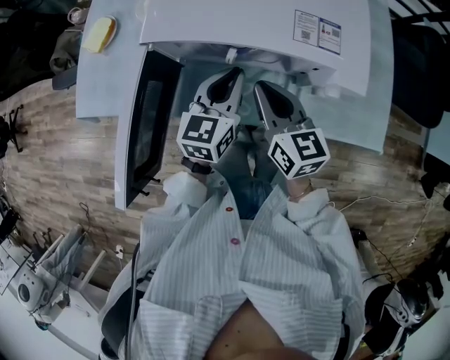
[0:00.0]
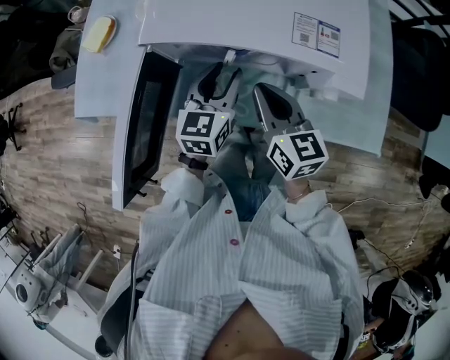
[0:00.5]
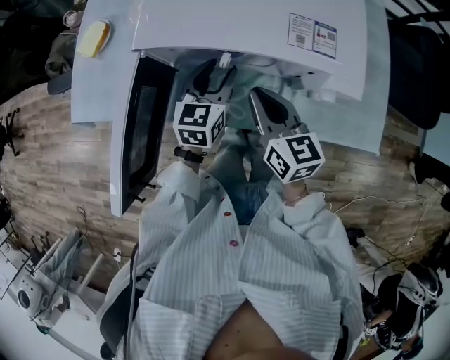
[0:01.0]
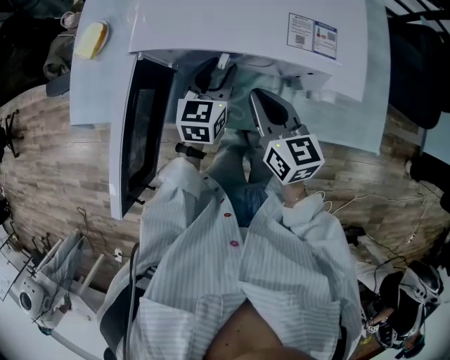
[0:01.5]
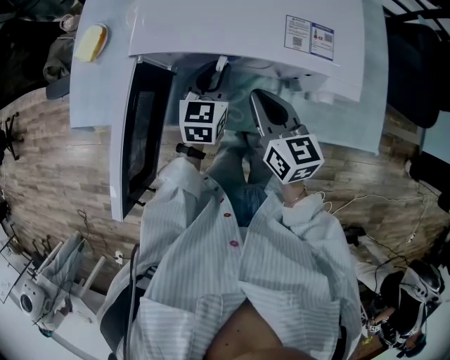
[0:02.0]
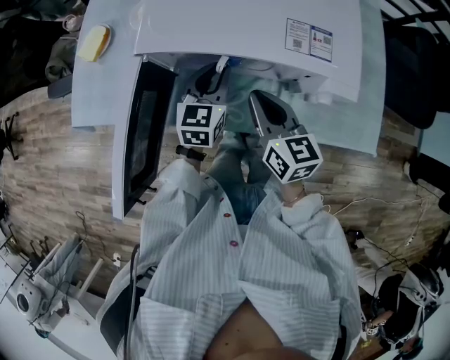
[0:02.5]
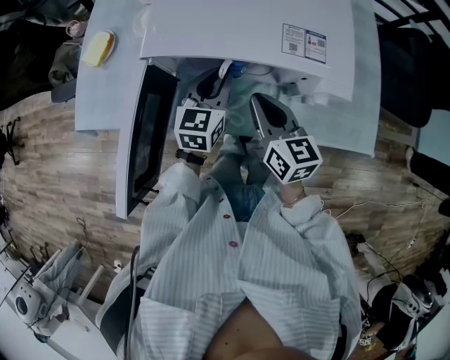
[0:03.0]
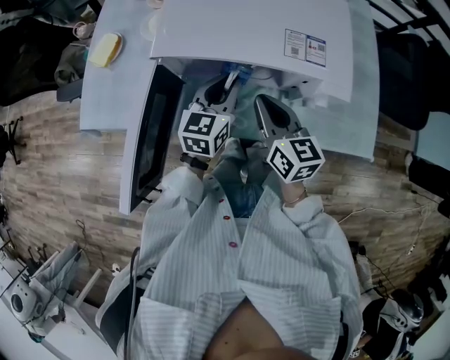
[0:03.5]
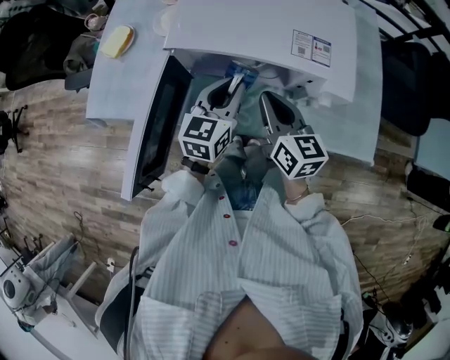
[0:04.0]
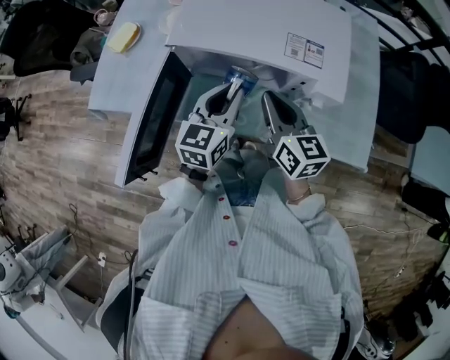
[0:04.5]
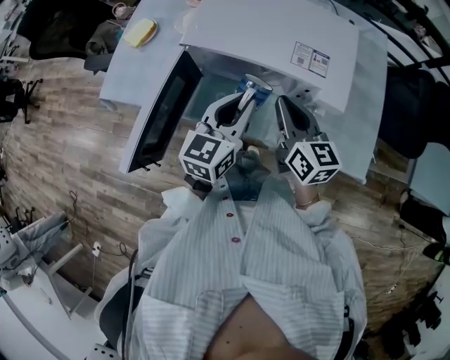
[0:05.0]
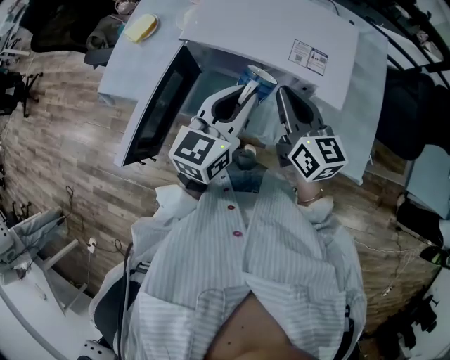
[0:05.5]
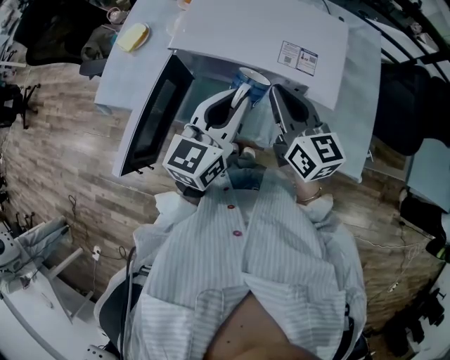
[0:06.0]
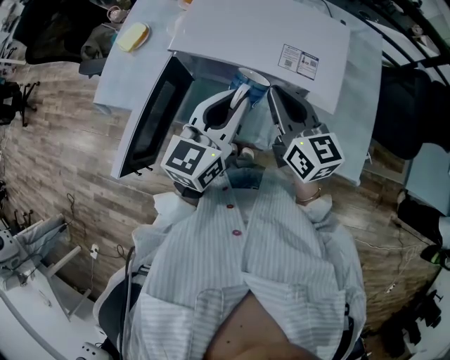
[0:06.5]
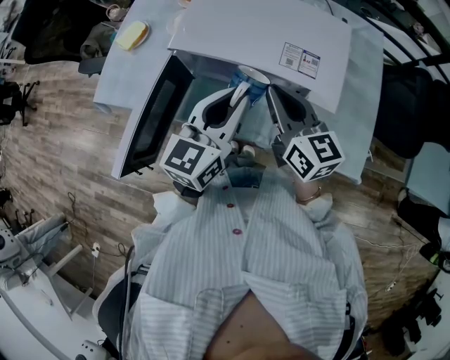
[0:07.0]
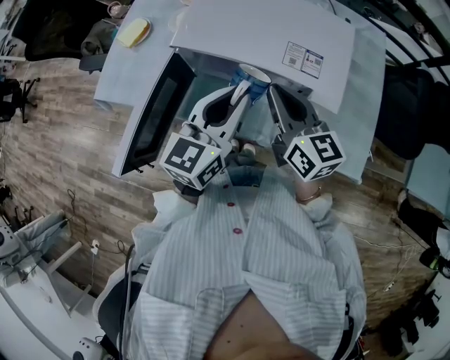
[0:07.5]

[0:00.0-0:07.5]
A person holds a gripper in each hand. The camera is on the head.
0:00.0 to 0:02.0: The left gripper heads downward, covering some 5 cm, and opens, then closes once more.
0:02.0 to 0:04.0: The left gripper shifts about 10 cm upward and backward.
0:04.0 to 0:05.5: The right gripper goes approximately 10 cm upward. The left gripper goes roughly 15 cm upward and backward.
0:05.5 to 0:07.5: The grippers move only a little.

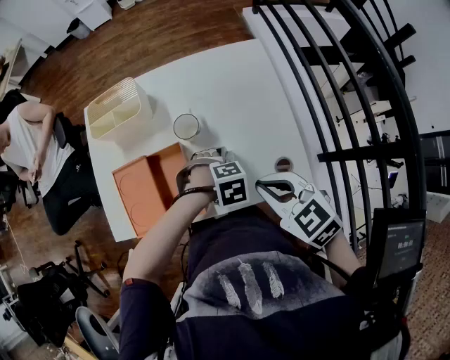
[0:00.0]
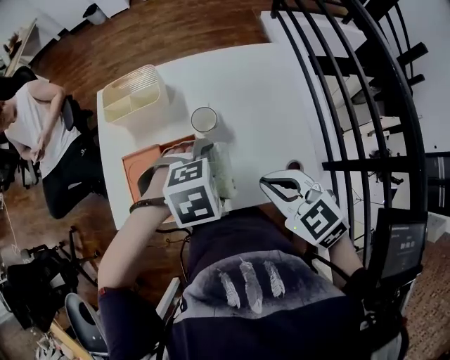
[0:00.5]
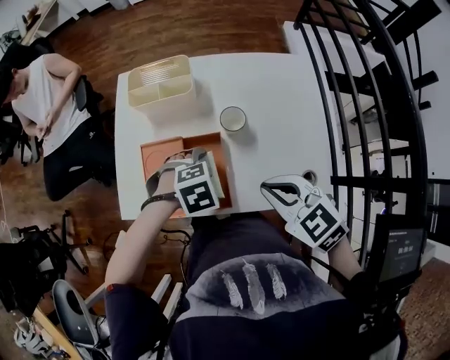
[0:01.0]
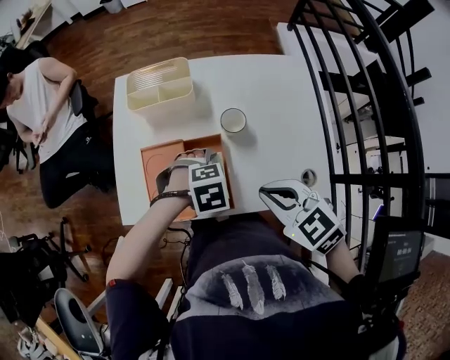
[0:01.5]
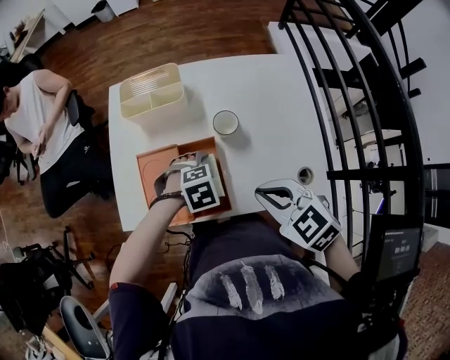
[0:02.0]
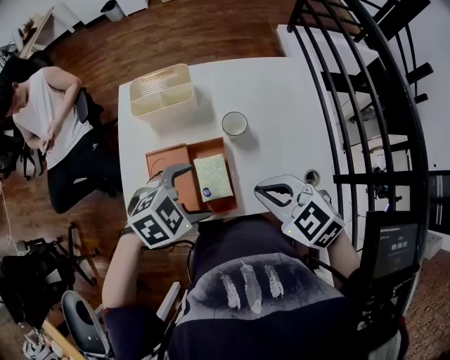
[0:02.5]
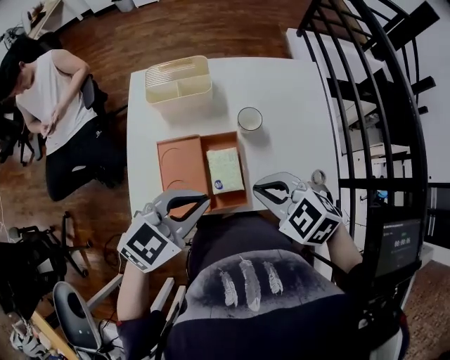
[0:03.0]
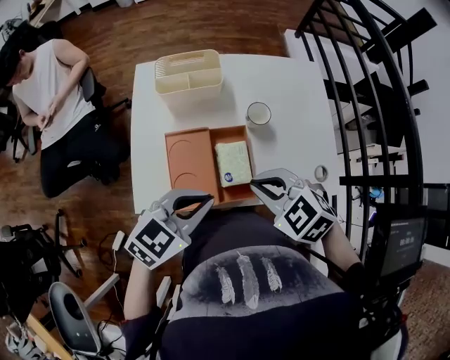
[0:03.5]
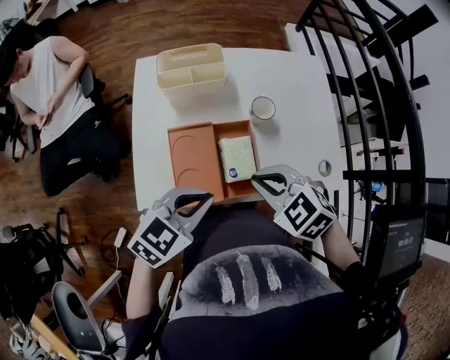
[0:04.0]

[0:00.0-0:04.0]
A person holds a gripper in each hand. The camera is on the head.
0:00.0 to 0:02.0: The left gripper travels upward and back again, some 15 cm each way. The right gripper shifts by approximately 10 cm.
0:02.0 to 0:04.0: The left gripper goes some 15 cm upward, tilts its fingers approximately 40 degrees upward, and closes up; the right gripper moves some 10 cm.

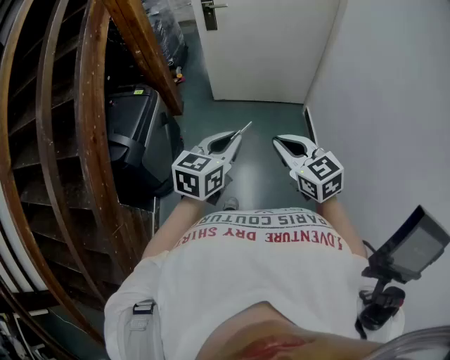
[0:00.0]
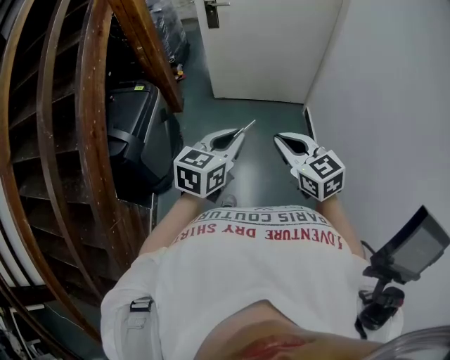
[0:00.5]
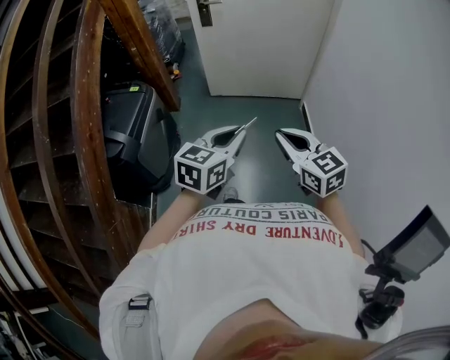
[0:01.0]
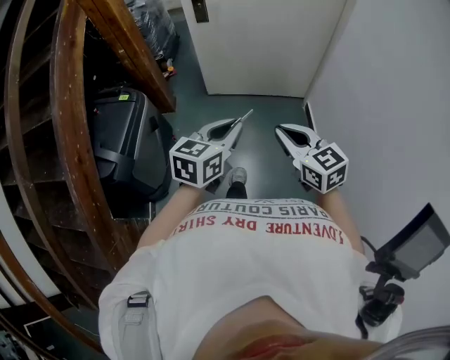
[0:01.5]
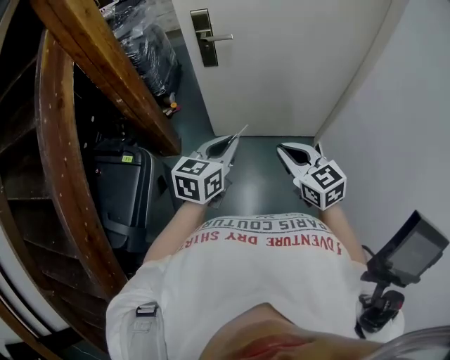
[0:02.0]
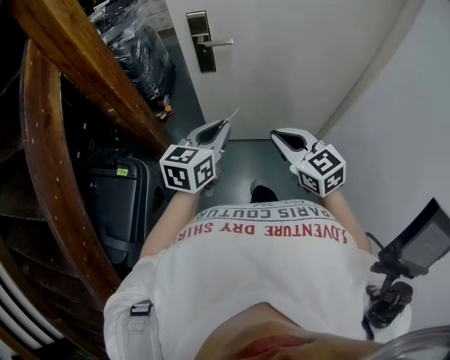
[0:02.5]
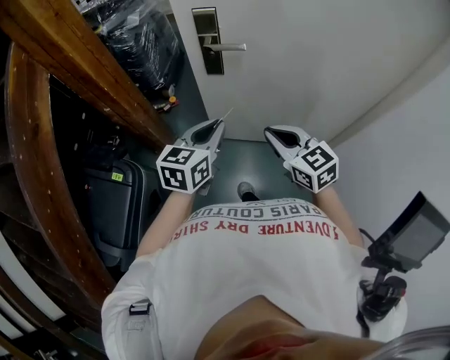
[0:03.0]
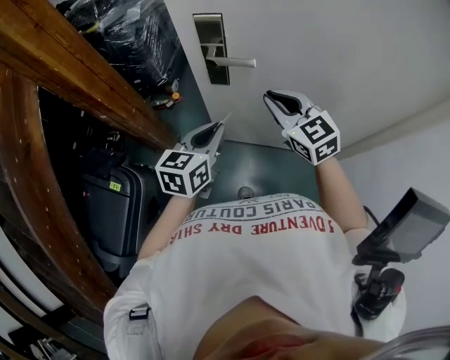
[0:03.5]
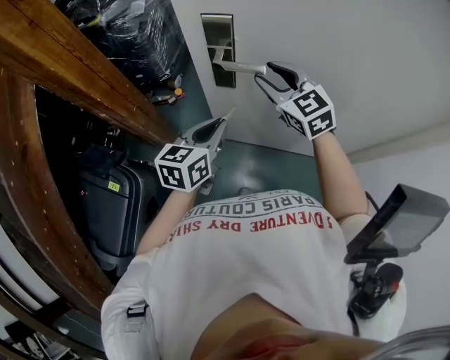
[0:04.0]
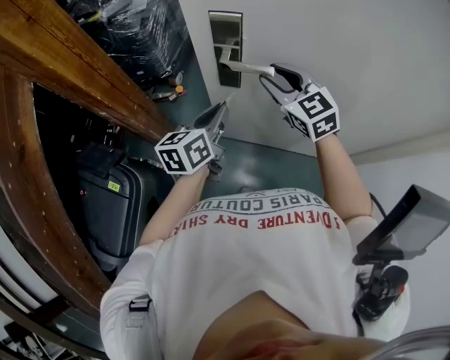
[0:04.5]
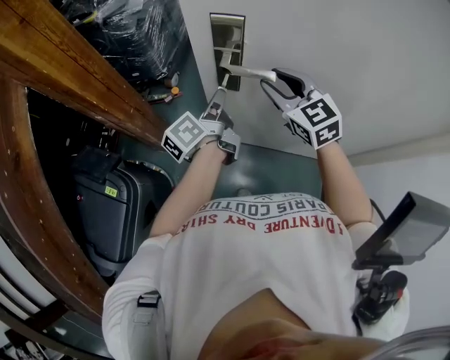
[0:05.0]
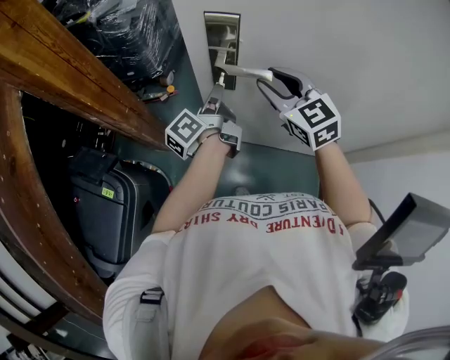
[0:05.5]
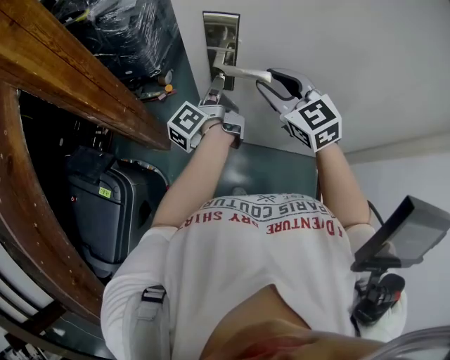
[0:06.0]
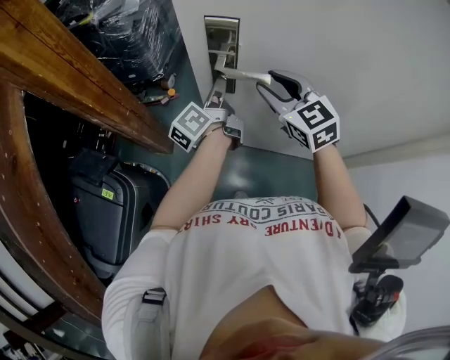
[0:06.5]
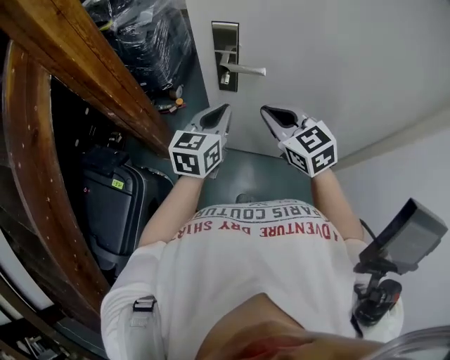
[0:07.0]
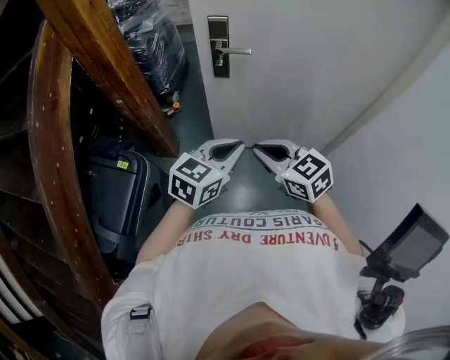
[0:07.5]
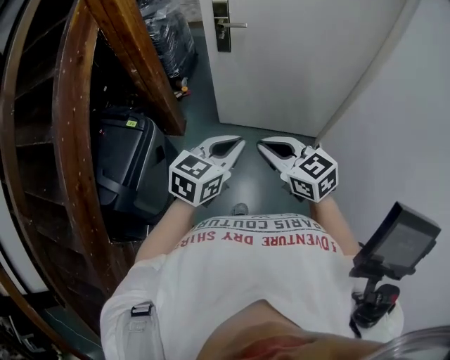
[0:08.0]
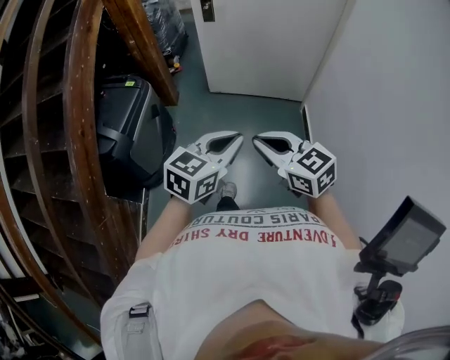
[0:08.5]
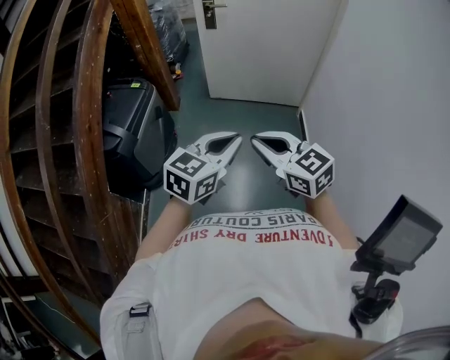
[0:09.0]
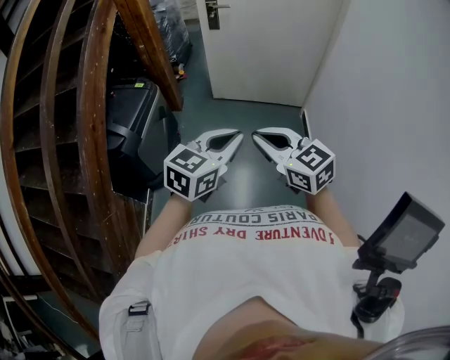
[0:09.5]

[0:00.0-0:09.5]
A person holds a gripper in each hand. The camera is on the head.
0:00.0 to 0:02.0: The two grippers travel together, forward, about 40 cm.
0:02.0 to 0:04.0: The grippers both shift forward by roughly 40 cm. The right gripper opens.
0:04.0 to 0:05.5: The left gripper shifts about 15 cm forward, and rotates around the line of its fingers by approximately 60 degrees, counterclockwise from behind.
0:05.5 to 0:07.5: The pair of grippers is taken backward, roughly 40 cm. The left gripper twists about 70 degrees clockwise, seen from behind, while the right gripper closes its fingers.
0:07.5 to 0:09.5: The two grippers travel together, backward, roughly 60 cm.

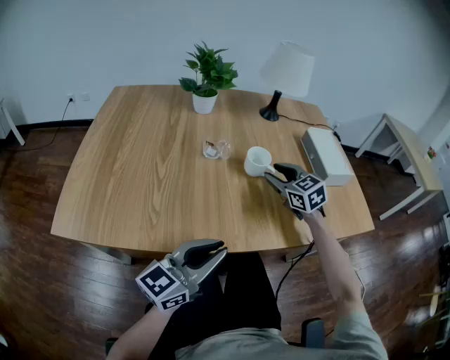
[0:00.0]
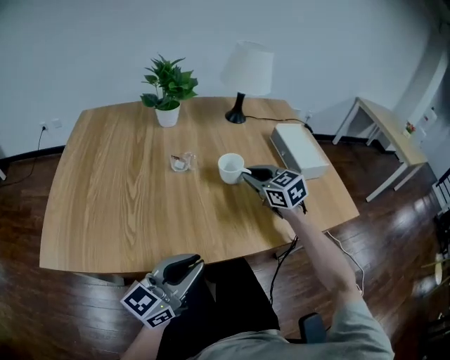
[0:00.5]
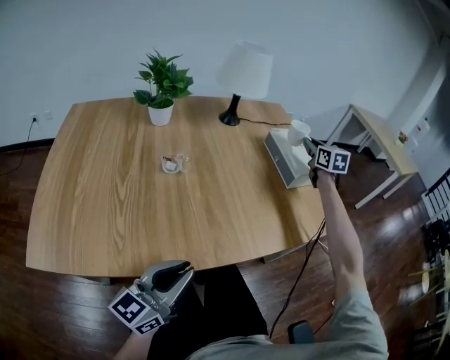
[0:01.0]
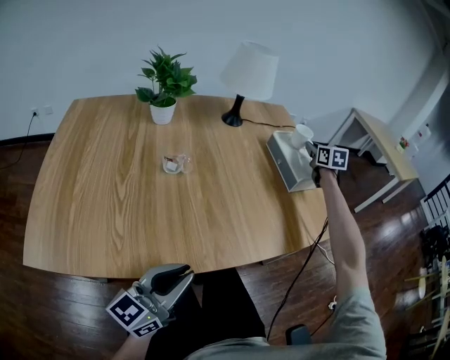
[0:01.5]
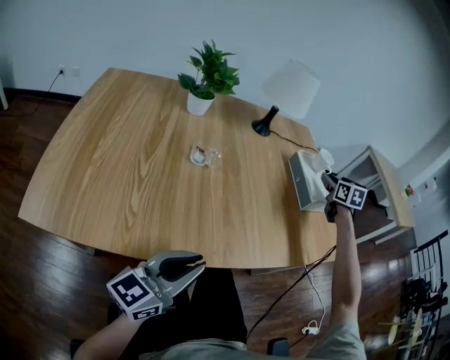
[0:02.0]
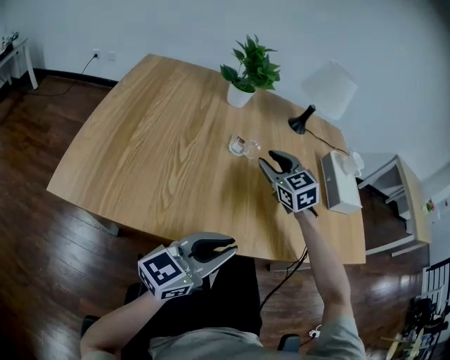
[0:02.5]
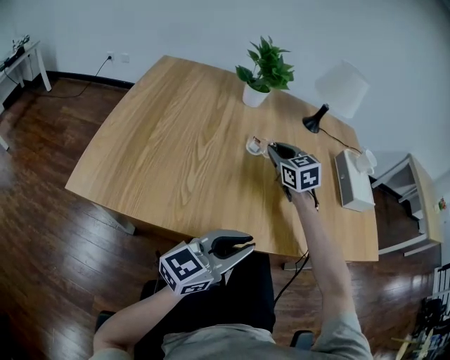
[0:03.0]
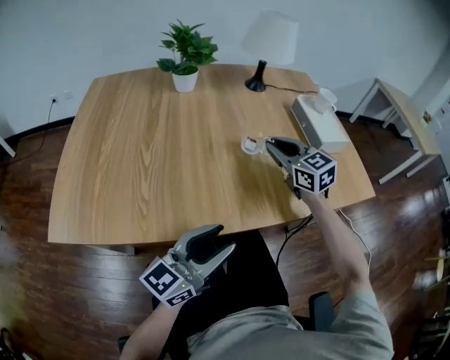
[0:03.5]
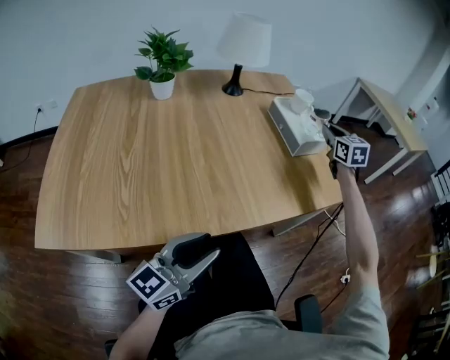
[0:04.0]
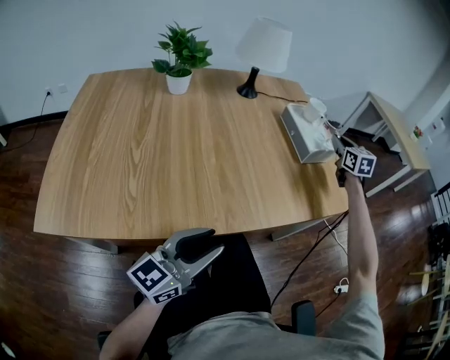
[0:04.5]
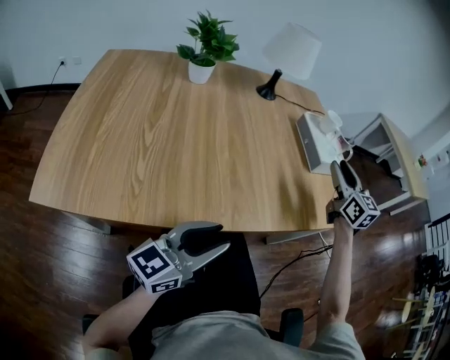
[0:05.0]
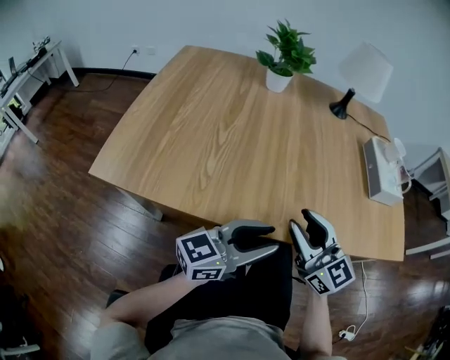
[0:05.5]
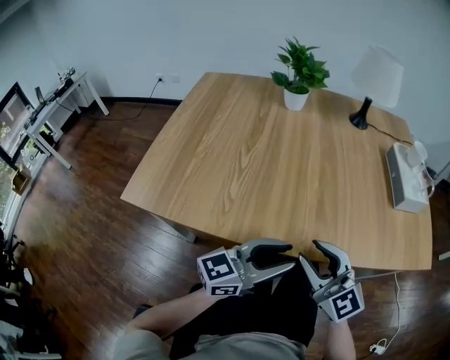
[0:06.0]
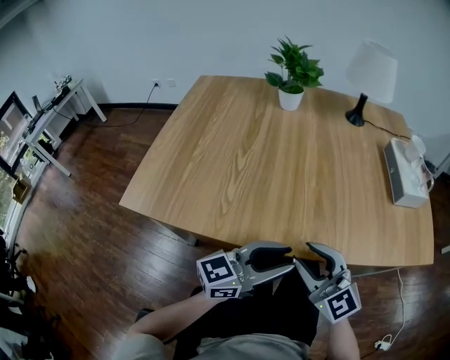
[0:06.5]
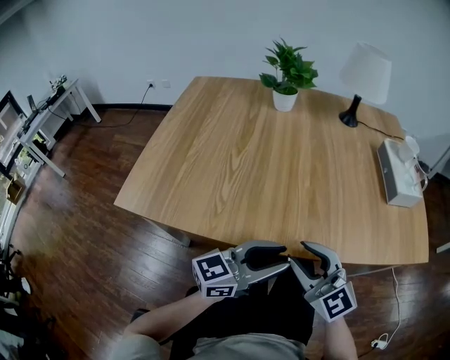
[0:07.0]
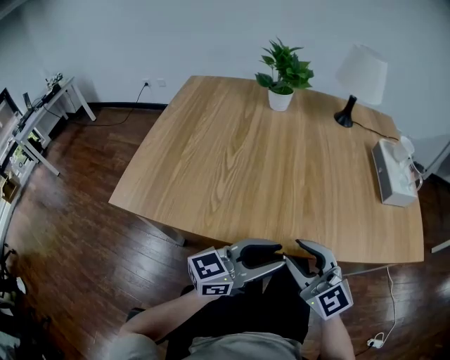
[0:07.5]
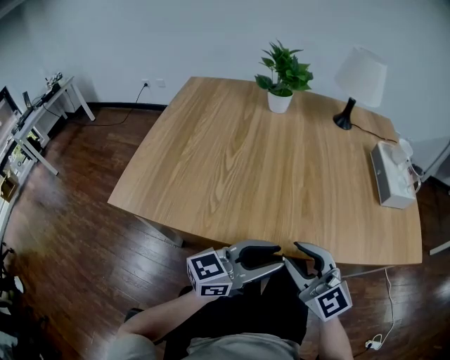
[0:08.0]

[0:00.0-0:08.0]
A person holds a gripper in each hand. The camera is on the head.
0:00.0 to 0:02.0: The right gripper is displaced to the right and forward by roughly 30 cm, turns by roughly 40 degrees, and closes and opens again.
0:02.0 to 0:04.0: The left gripper ends up approximately 5 cm from where it was, and opens up. Meanwhile the right gripper heads backward, covering roughly 5 cm, goes to the left and returns, about 40 cm each way, and closes.
0:04.0 to 0:06.0: The right gripper shifts by some 50 cm, rotates about 60 degrees, and opens up.
0:06.0 to 0:08.0: The grippers stay close to where they were, moving slightly.
